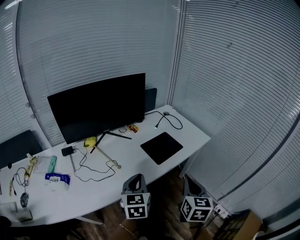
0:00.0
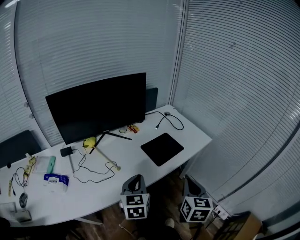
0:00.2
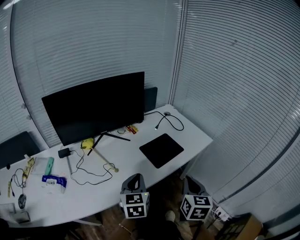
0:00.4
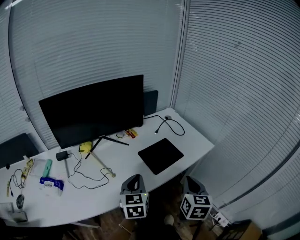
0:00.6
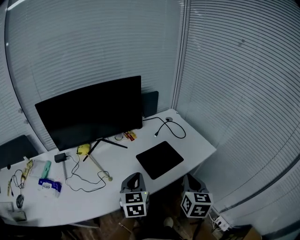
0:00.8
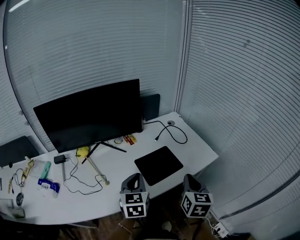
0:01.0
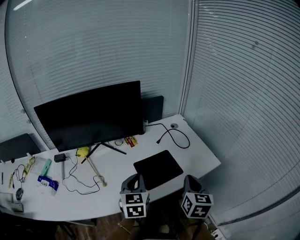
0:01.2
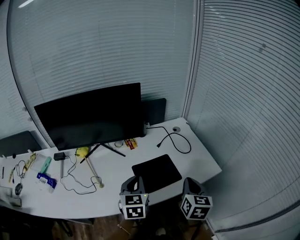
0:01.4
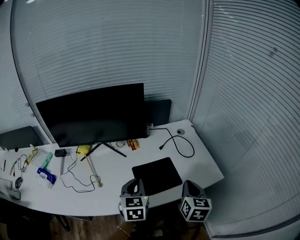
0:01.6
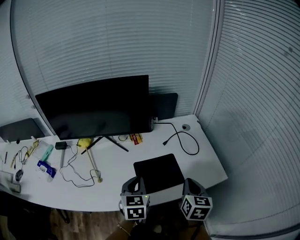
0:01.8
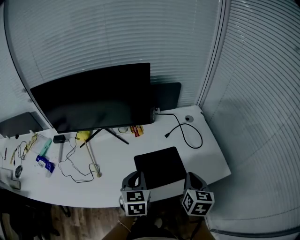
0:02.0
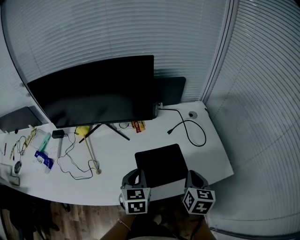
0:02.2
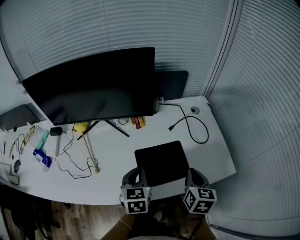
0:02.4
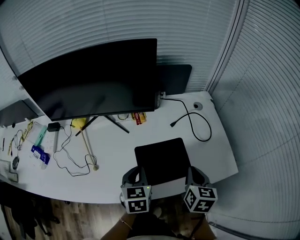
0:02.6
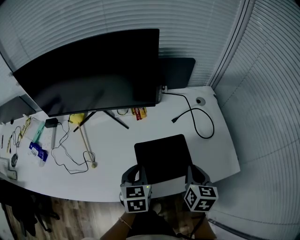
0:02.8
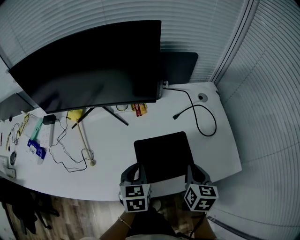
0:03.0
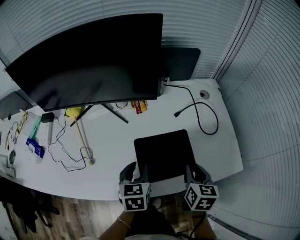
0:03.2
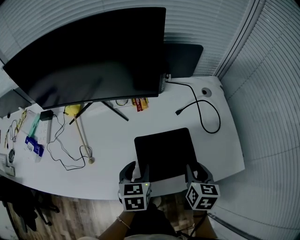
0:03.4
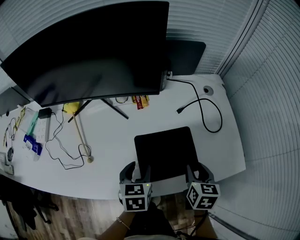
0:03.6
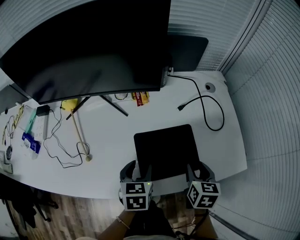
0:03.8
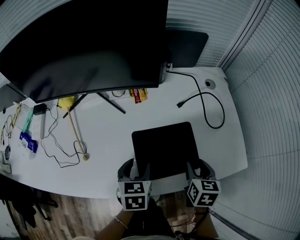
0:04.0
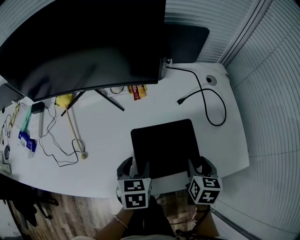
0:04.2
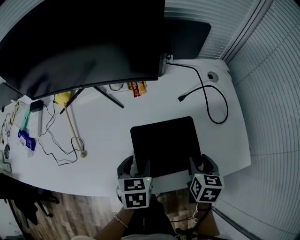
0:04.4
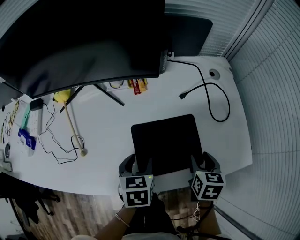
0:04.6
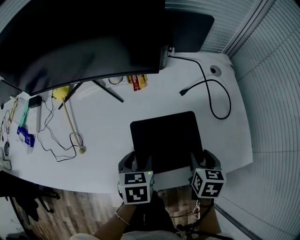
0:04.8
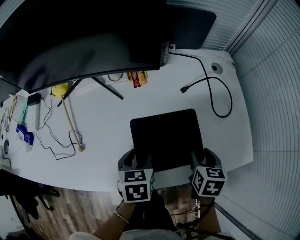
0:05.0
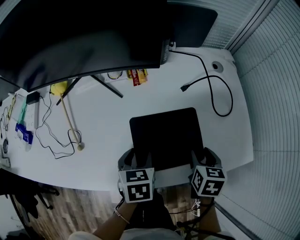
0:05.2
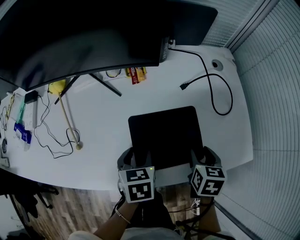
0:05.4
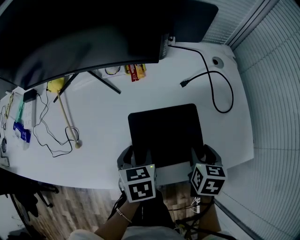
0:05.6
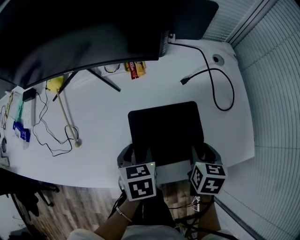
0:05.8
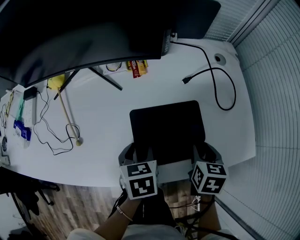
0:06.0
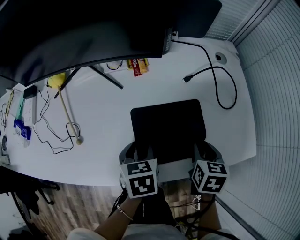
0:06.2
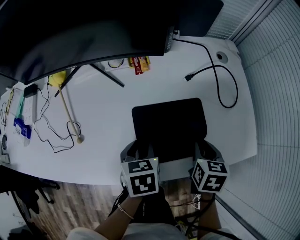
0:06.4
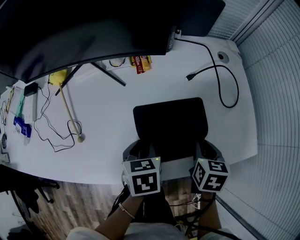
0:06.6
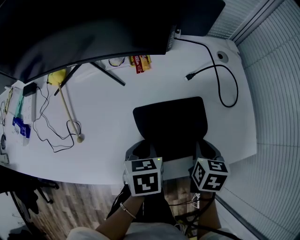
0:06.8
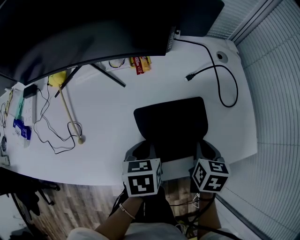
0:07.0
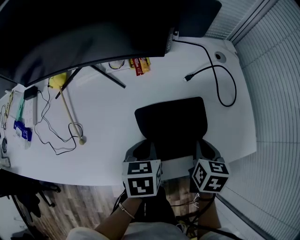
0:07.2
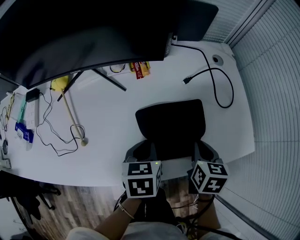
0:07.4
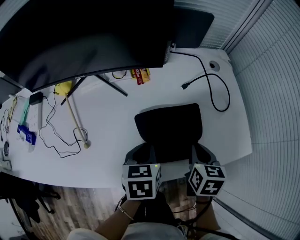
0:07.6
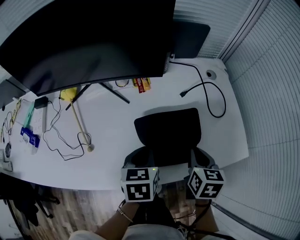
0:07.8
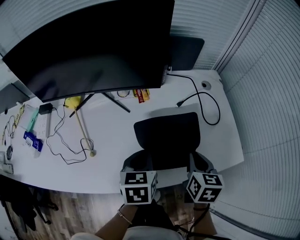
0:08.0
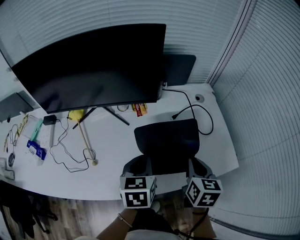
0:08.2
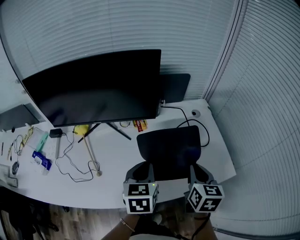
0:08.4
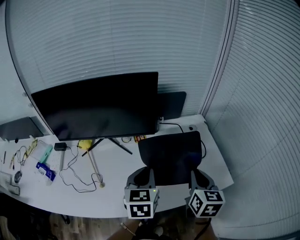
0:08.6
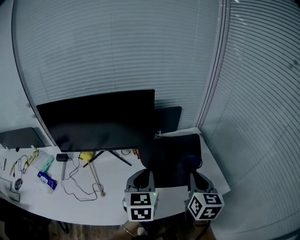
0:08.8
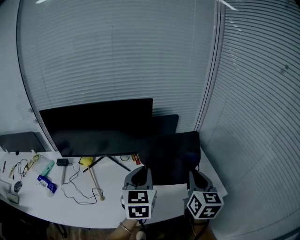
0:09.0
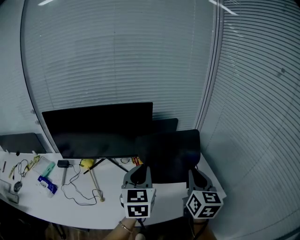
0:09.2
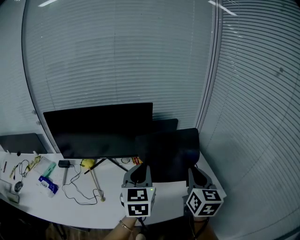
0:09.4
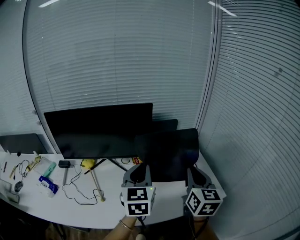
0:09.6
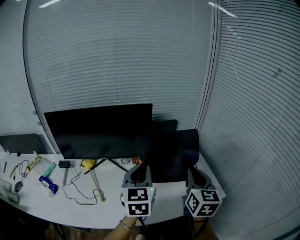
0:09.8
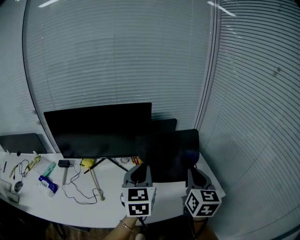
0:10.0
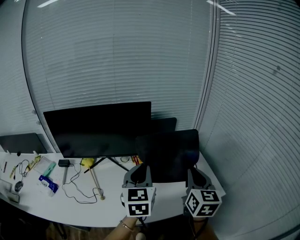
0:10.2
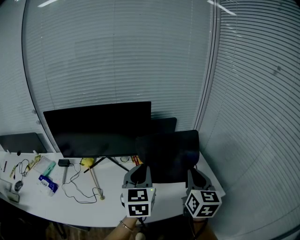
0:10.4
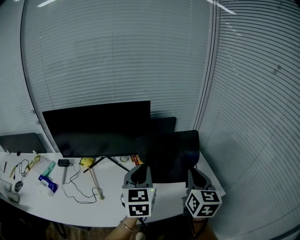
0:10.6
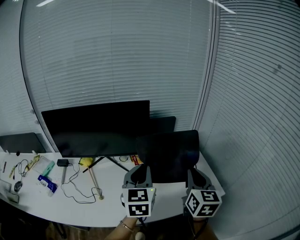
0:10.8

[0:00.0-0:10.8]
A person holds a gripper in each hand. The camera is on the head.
0:00.0 to 0:01.6: The right gripper goes roughly 25 cm forward. The left gripper is displaced forward and to the right by some 20 cm, and changes its angle by approximately 20 degrees.
0:01.6 to 0:03.0: The left gripper travels downward by roughly 10 cm, while the right gripper shifts roughly 10 cm downward and forward.
0:03.0 to 0:04.6: The grippers both shift downward by approximately 5 cm. The left gripper opens its fingers; the right gripper opens its fingers.
0:04.6 to 0:06.2: The grippers stay close to where they were, moving slightly.
0:06.2 to 0:07.8: The grippers both shift upward by some 5 cm. The right gripper closes. Meanwhile the left gripper closes up.
0:07.8 to 0:09.2: The two grippers go roughly 25 cm upward. The right gripper tips its fingers upward by some 40 degrees, while the left gripper tilts its fingers about 40 degrees upward.
0:09.2 to 0:10.8: The two grippers keep their place.

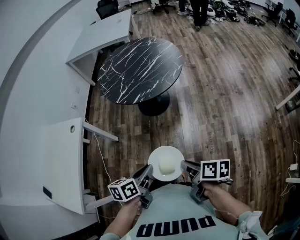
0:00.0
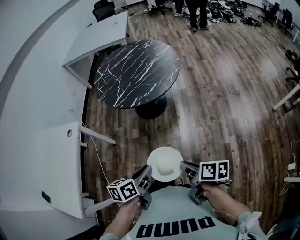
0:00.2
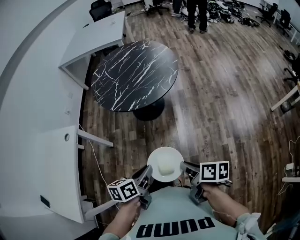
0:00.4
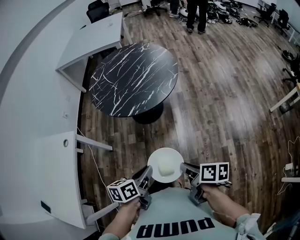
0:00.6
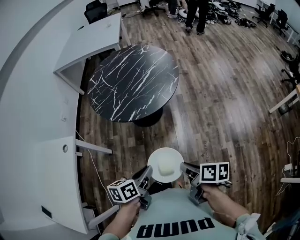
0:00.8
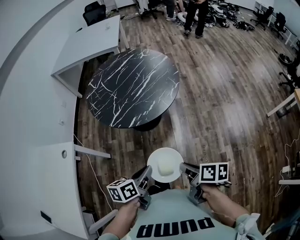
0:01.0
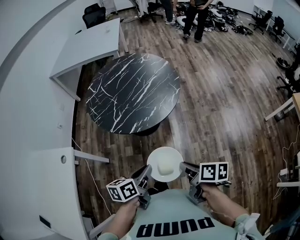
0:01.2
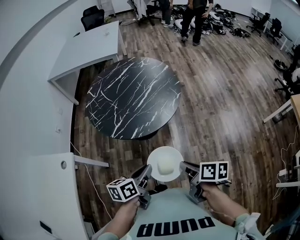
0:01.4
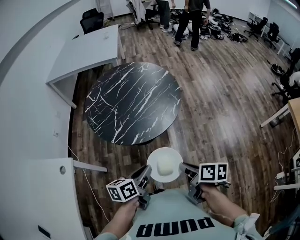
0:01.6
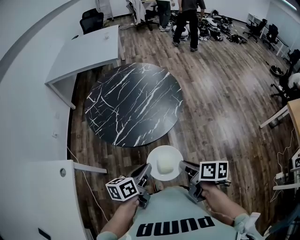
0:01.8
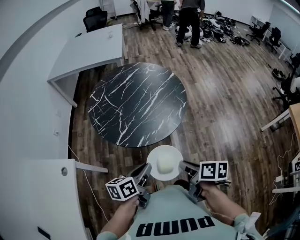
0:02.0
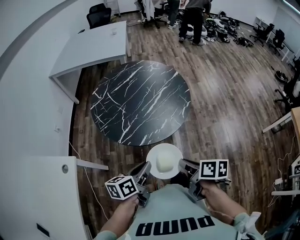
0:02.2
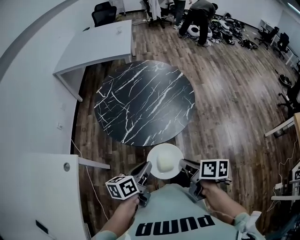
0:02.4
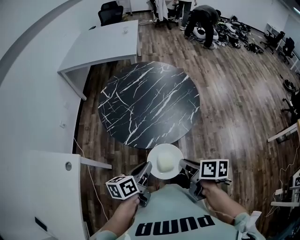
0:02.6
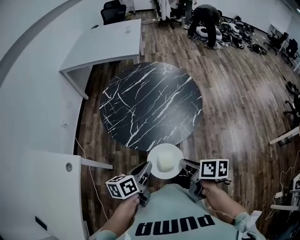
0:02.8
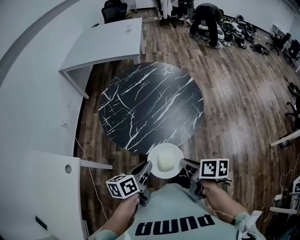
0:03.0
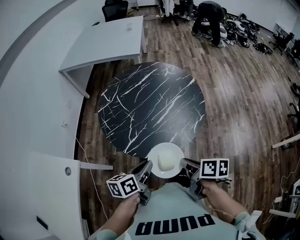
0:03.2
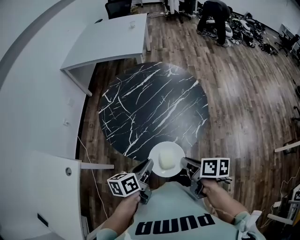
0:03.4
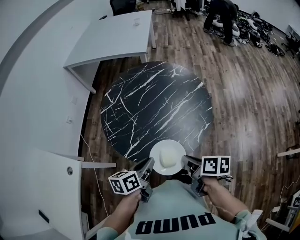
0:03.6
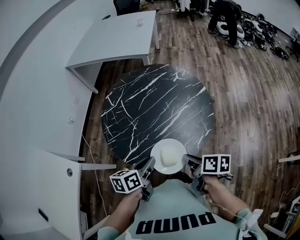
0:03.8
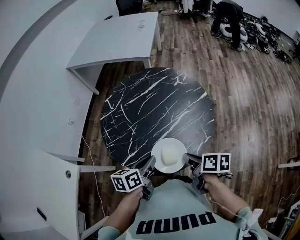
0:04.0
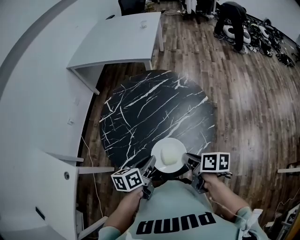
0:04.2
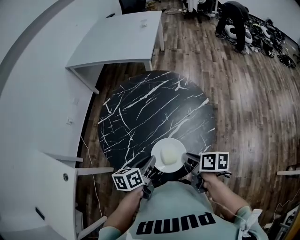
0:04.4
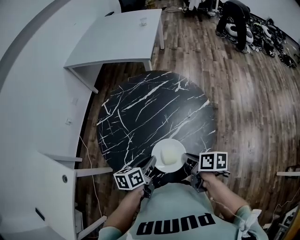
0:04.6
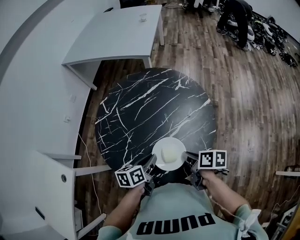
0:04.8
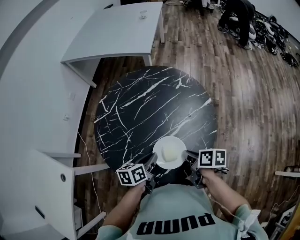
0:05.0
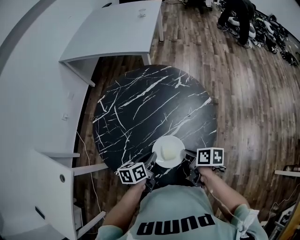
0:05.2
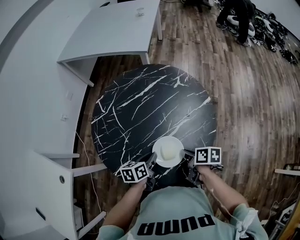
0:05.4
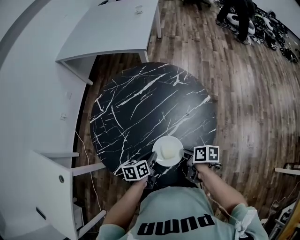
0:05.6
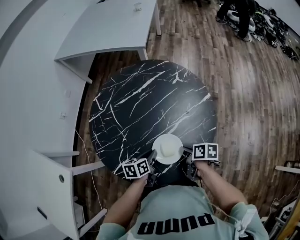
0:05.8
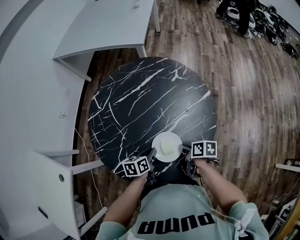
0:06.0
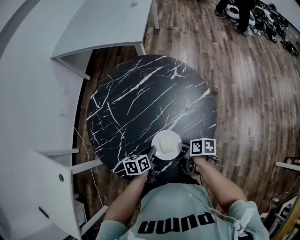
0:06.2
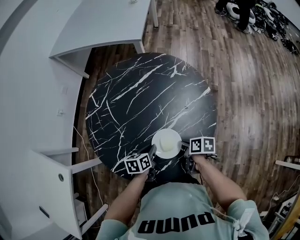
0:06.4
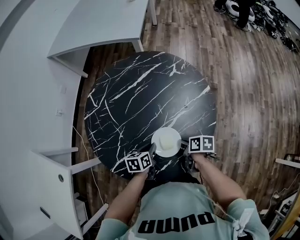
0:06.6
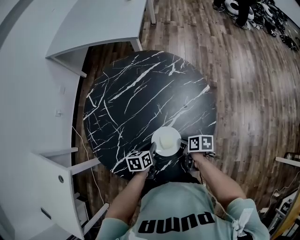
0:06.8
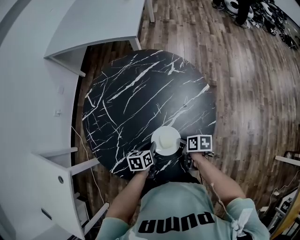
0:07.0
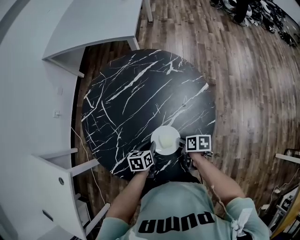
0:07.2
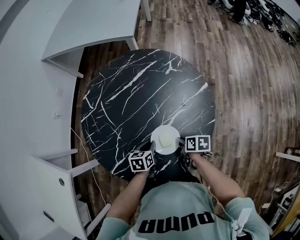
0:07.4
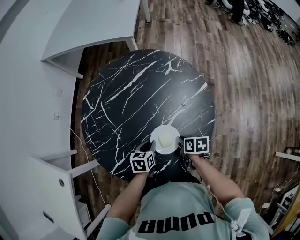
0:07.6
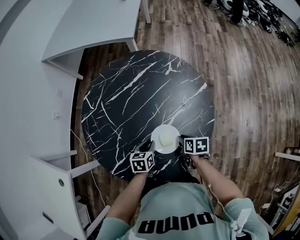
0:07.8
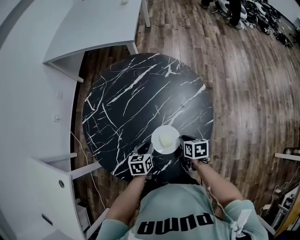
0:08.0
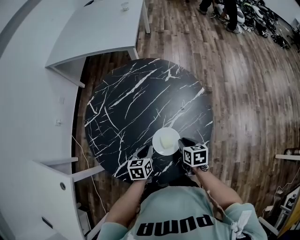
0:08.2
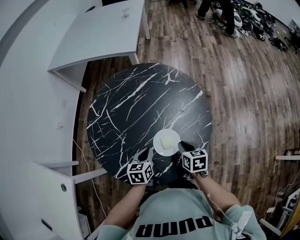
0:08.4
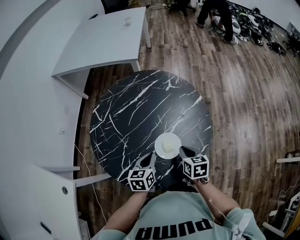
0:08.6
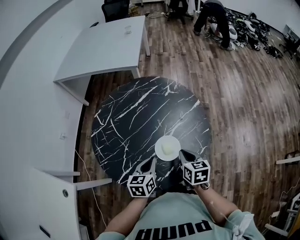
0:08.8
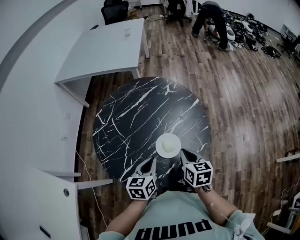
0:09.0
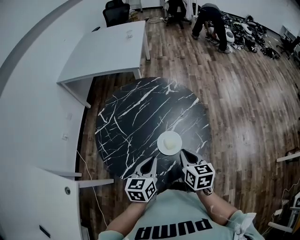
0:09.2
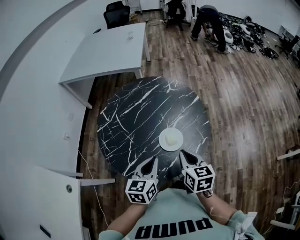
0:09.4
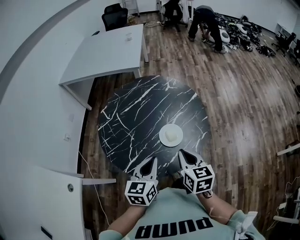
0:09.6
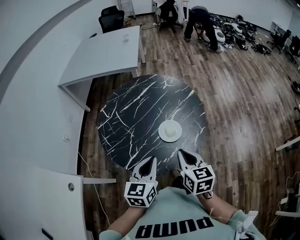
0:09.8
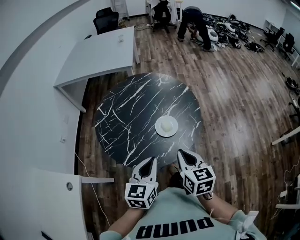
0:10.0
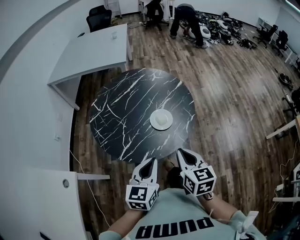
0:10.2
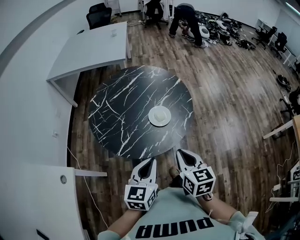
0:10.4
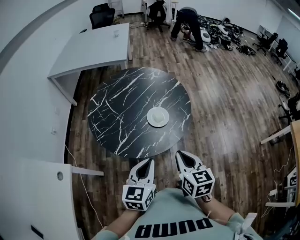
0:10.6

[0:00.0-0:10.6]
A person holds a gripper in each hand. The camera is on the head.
0:00.0 to 0:01.6: Both grippers move forward, roughly 25 cm.
0:01.6 to 0:03.0: The grippers both shift forward and to the left by roughly 15 cm.
0:03.0 to 0:04.6: The two grippers go roughly 25 cm forward and to the right.
0:04.6 to 0:06.0: The grippers both shift downward by approximately 15 cm.
0:06.0 to 0:07.6: The left gripper moves about 5 cm, while the right gripper heads downward, covering about 5 cm.
0:07.6 to 0:09.0: Both grippers travel together upward, about 20 cm. The right gripper rotates about 40 degrees, while the left gripper swivels approximately 20 degrees.
0:09.0 to 0:10.6: The right gripper moves backward, some 25 cm. Meanwhile the left gripper moves backward and upward, approximately 25 cm.

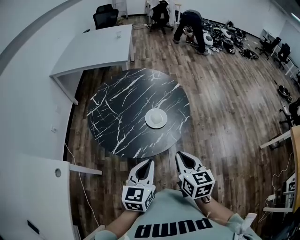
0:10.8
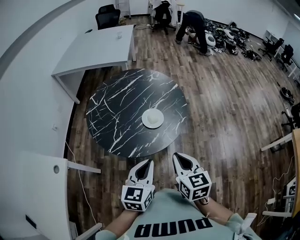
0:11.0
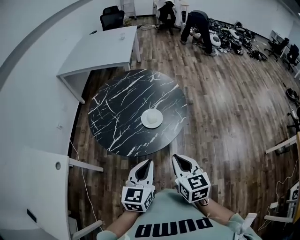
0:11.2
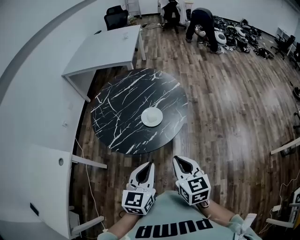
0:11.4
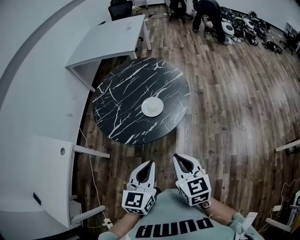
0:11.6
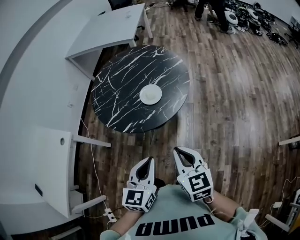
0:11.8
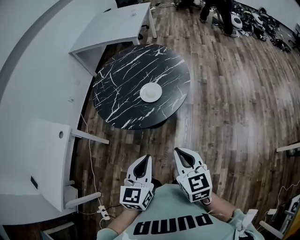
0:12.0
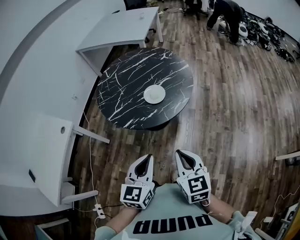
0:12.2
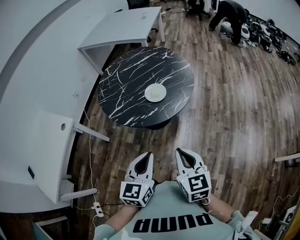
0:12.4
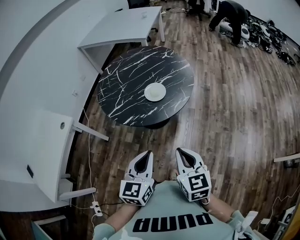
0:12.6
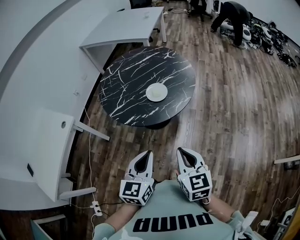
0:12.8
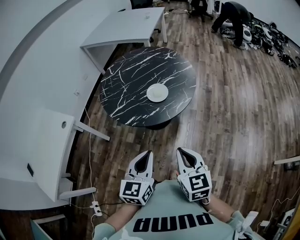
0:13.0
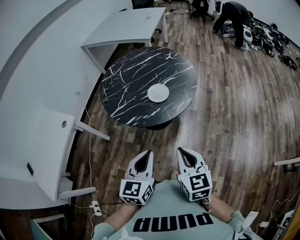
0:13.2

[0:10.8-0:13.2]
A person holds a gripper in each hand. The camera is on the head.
0:10.8 to 0:12.0: Both grippers travel together to the right and backward, about 20 cm. The right gripper swivels some 20 degrees.
0:12.0 to 0:13.2: The grippers move only a little.
